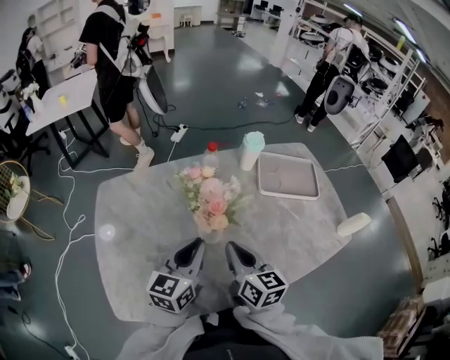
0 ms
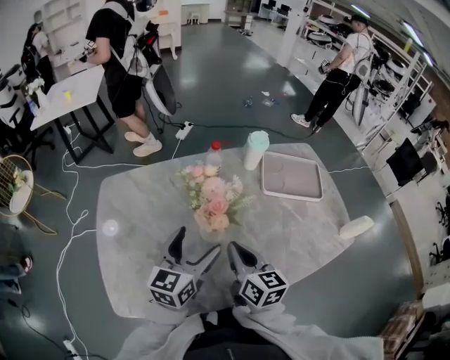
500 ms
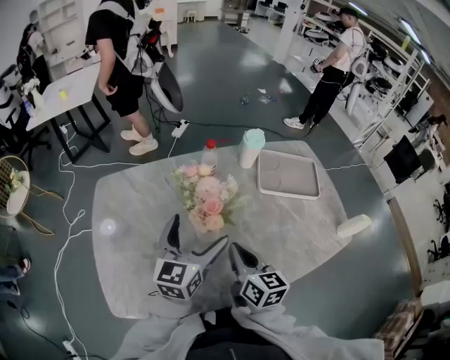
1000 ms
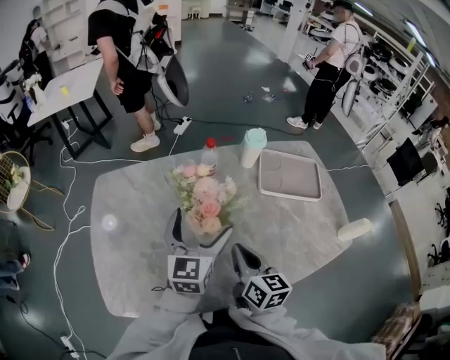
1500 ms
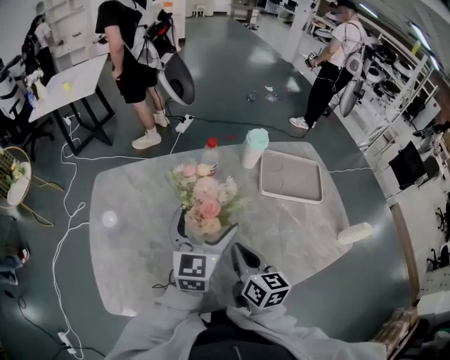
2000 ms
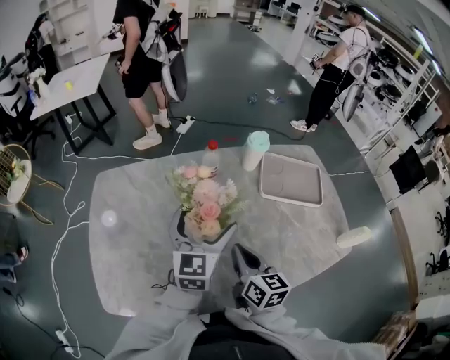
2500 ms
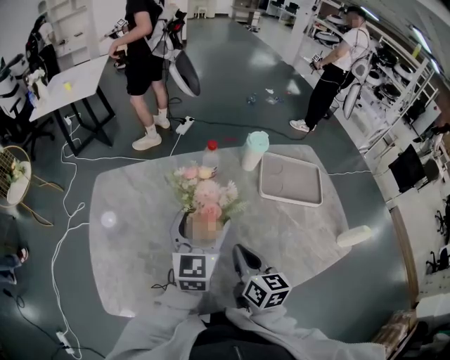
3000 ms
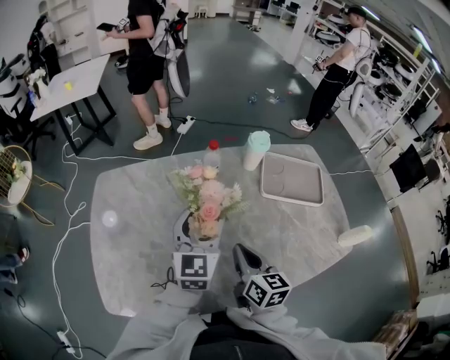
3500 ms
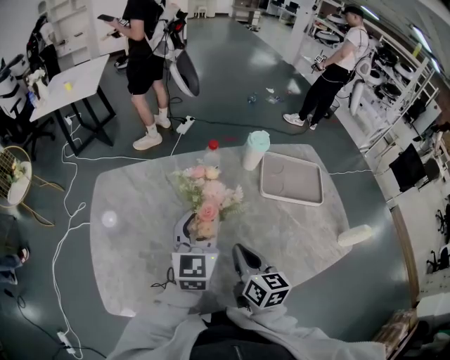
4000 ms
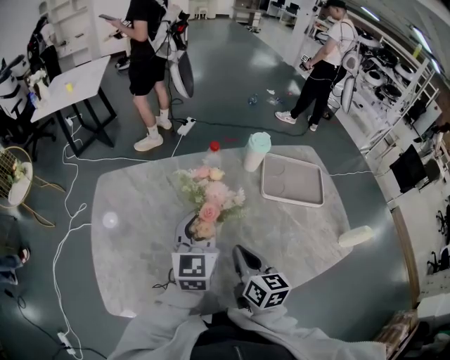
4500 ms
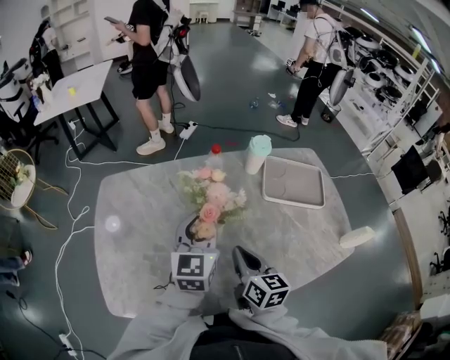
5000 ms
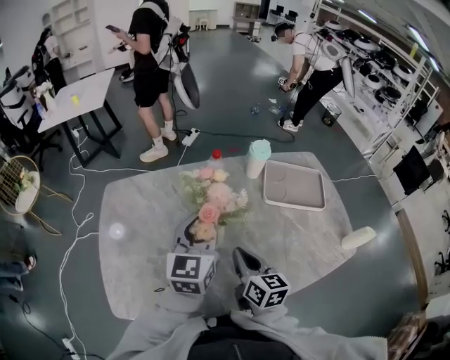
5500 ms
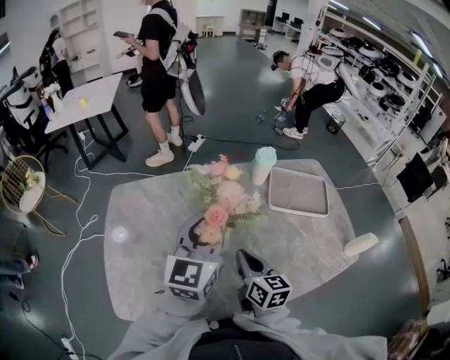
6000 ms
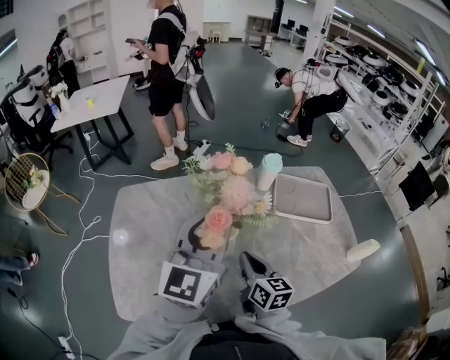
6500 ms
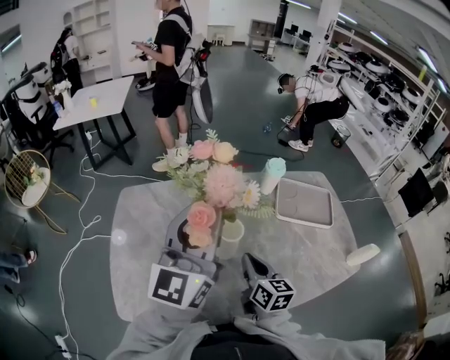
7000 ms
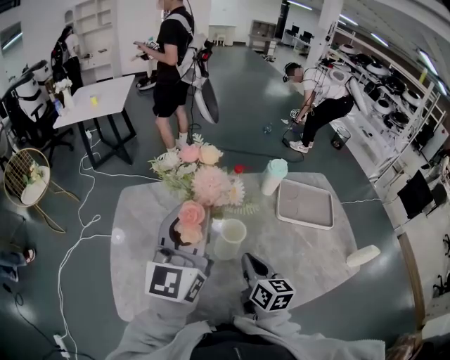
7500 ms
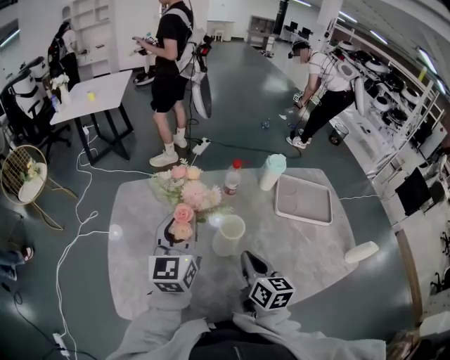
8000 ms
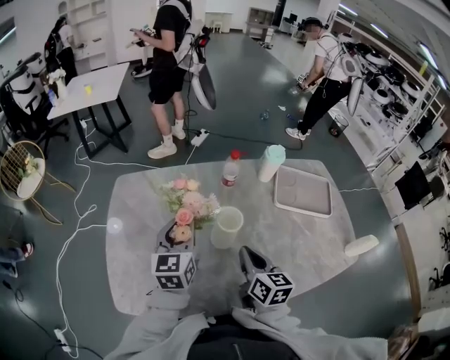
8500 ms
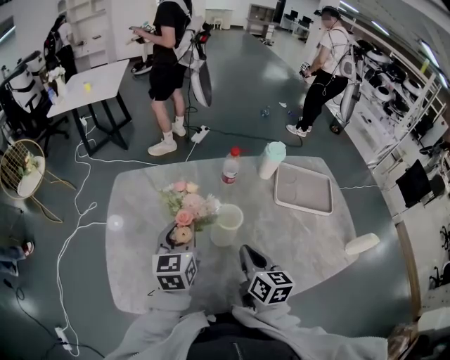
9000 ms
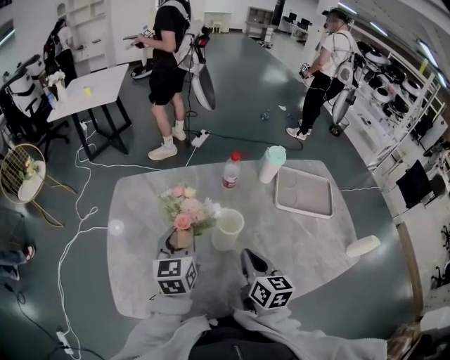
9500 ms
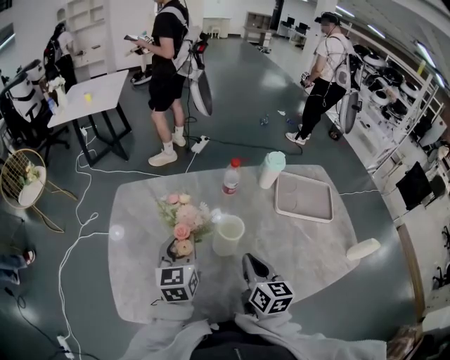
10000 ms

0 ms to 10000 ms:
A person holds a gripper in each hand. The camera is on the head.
0 ms to 2000 ms: The left gripper goes about 10 cm forward and to the right, and opens; the right gripper moves about 5 cm.
2000 ms to 4000 ms: The left gripper closes up.
4000 ms to 6000 ms: The left gripper shifts roughly 10 cm upward.
6000 ms to 8000 ms: The left gripper travels to the left by roughly 15 cm, and goes upward and returns, about 10 cm each way.
8000 ms to 10000 ms: The left gripper heads downward, covering approximately 10 cm.

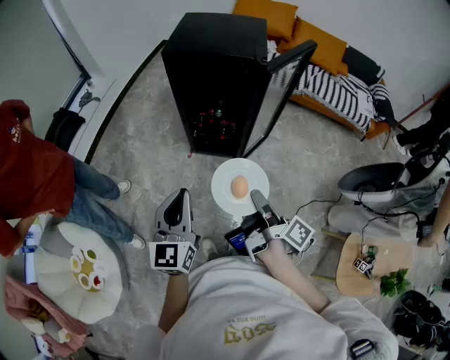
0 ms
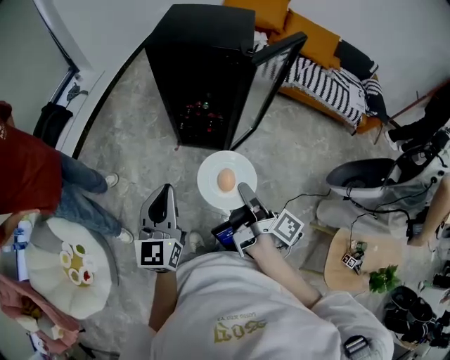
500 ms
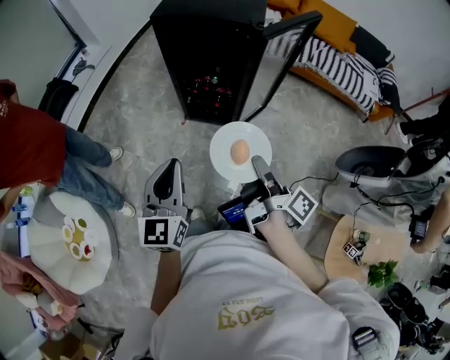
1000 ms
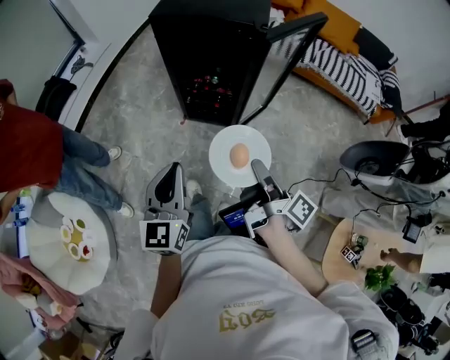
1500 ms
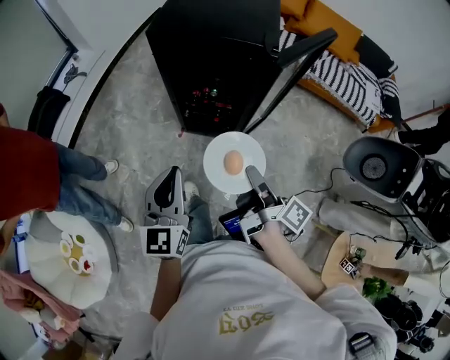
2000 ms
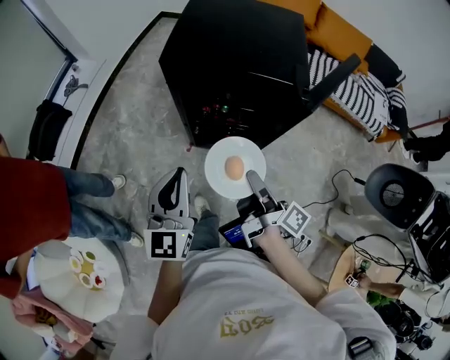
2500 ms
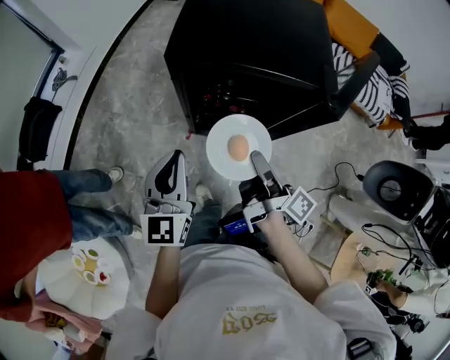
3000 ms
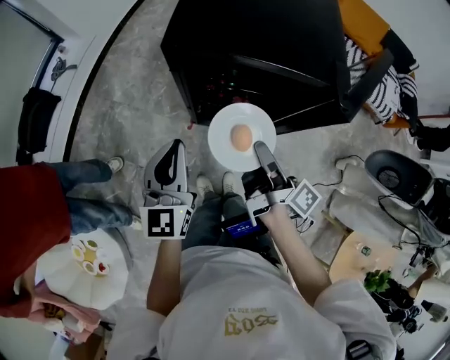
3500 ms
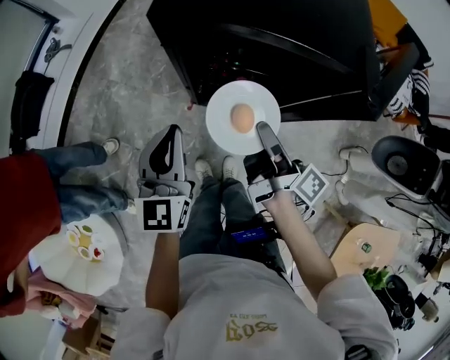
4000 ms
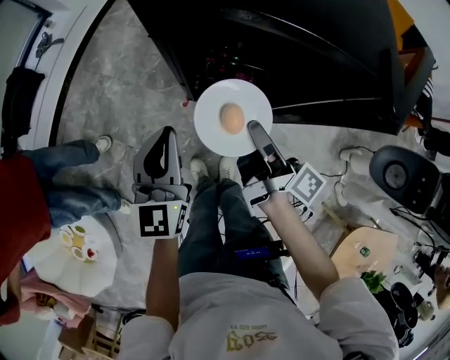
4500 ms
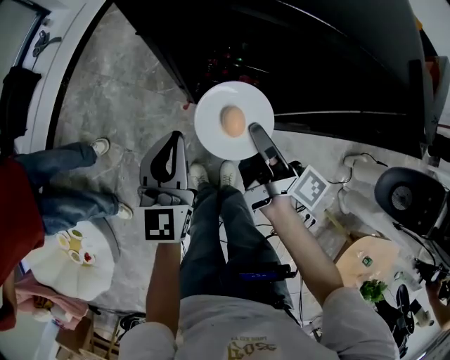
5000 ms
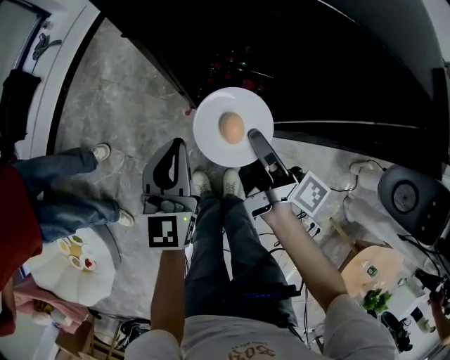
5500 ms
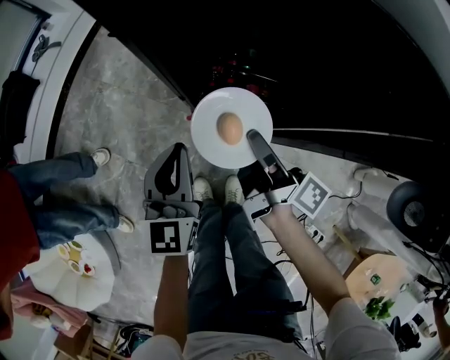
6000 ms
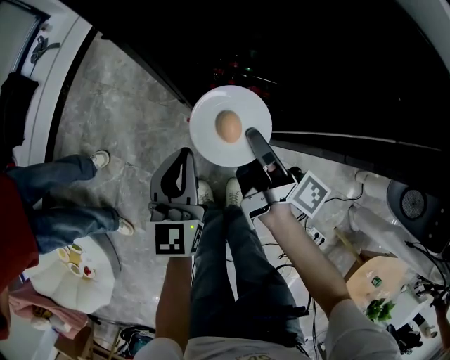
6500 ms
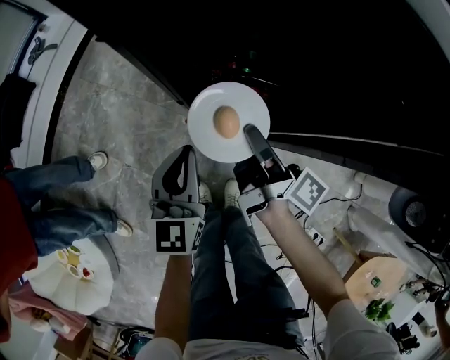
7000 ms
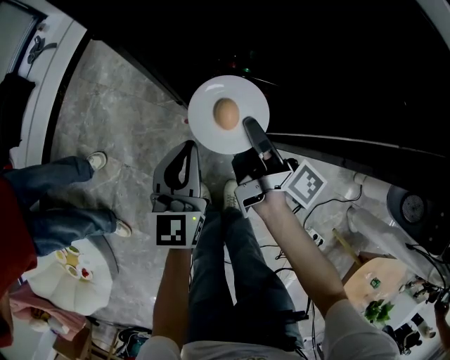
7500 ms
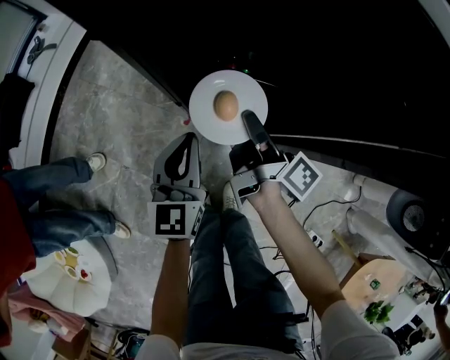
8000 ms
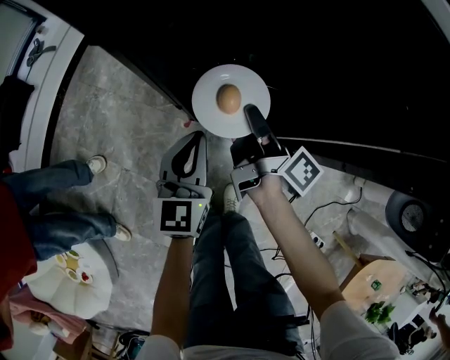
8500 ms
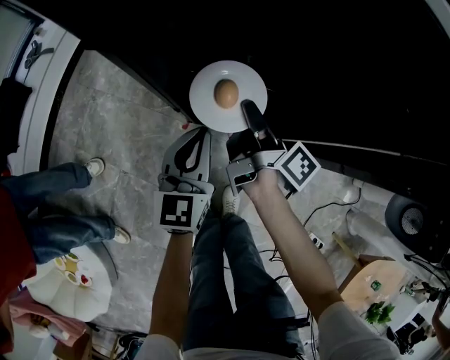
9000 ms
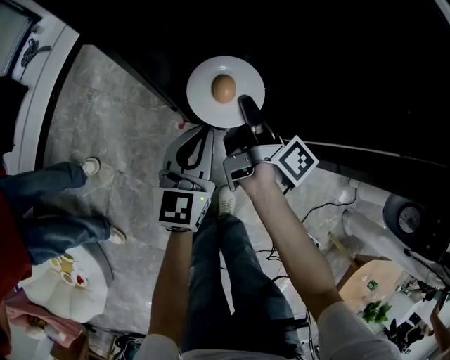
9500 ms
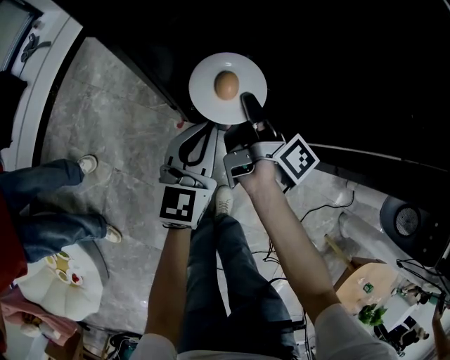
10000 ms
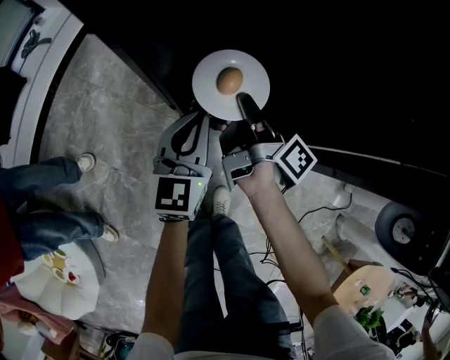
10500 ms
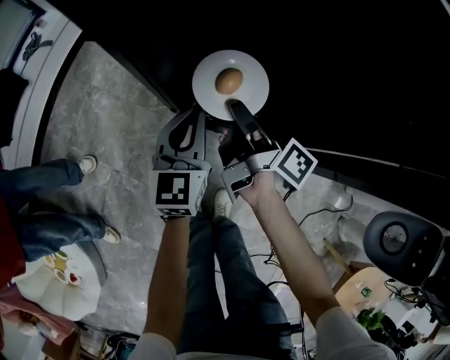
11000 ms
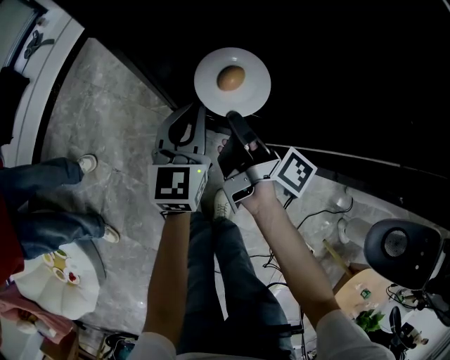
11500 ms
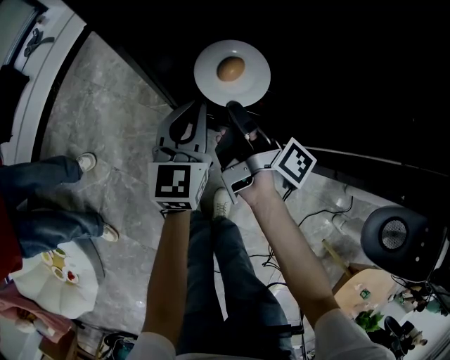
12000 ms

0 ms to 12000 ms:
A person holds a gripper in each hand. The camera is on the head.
0 ms to 2000 ms: The left gripper moves approximately 10 cm.
2000 ms to 4000 ms: The left gripper changes place by about 25 cm.
4000 ms to 6000 ms: The left gripper shifts about 15 cm downward.
6000 ms to 8000 ms: The left gripper shifts by about 5 cm.
8000 ms to 10000 ms: The left gripper shifts by some 5 cm.
10000 ms to 12000 ms: The left gripper ends up roughly 5 cm from where it was.

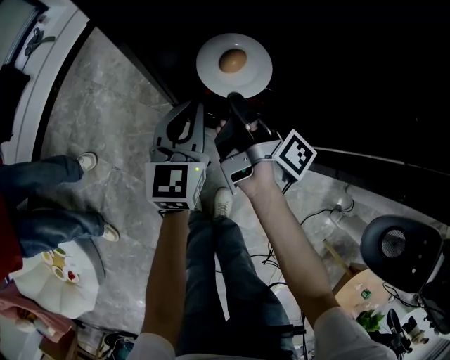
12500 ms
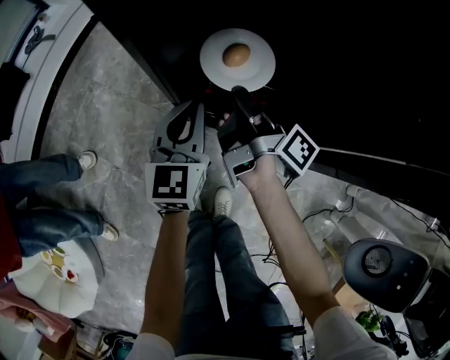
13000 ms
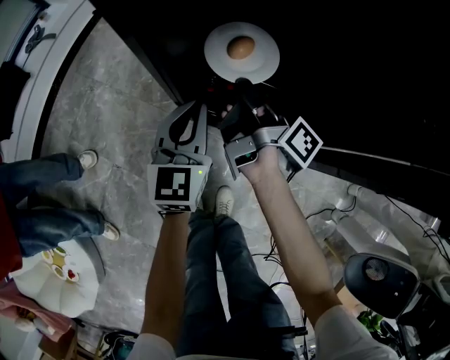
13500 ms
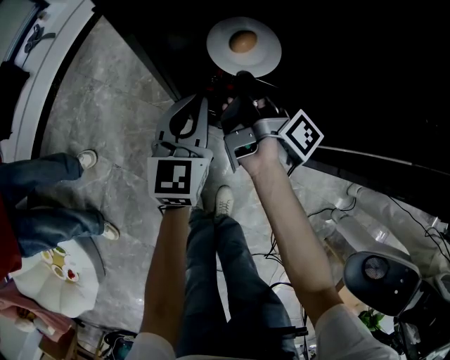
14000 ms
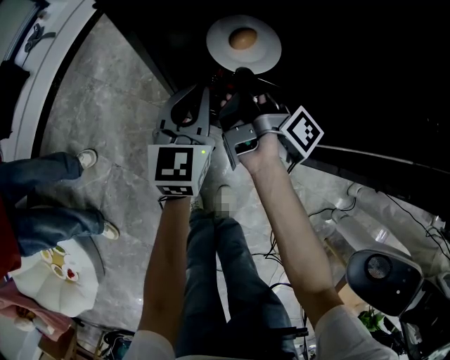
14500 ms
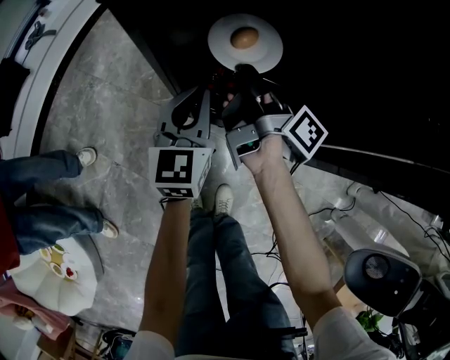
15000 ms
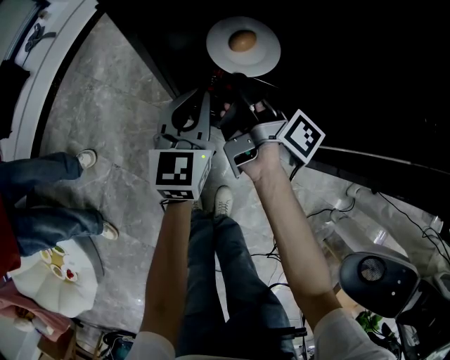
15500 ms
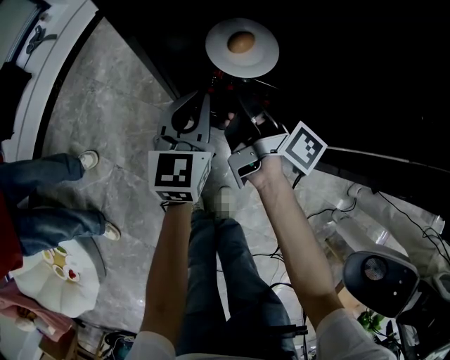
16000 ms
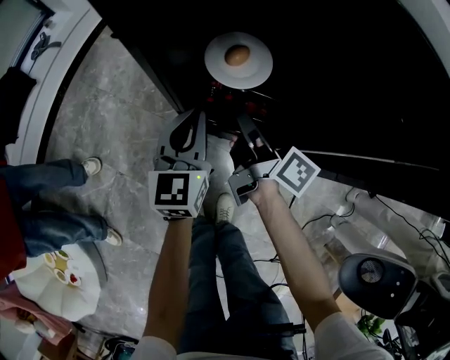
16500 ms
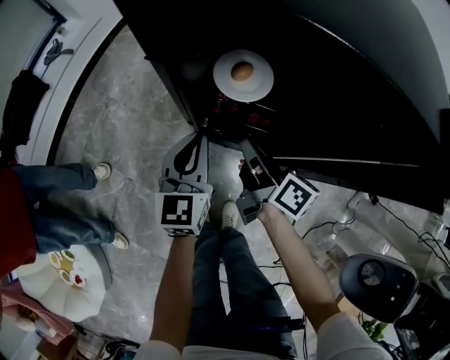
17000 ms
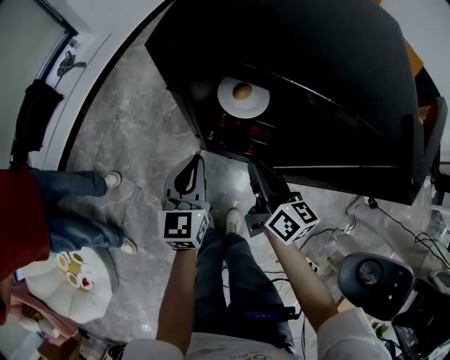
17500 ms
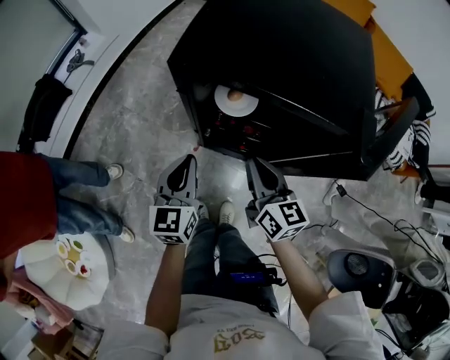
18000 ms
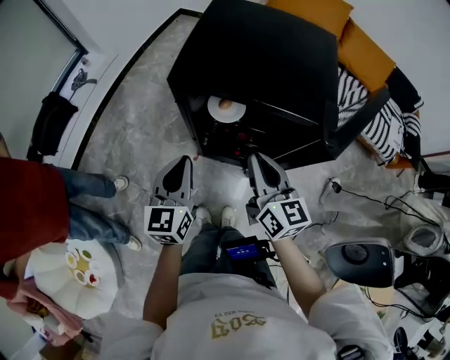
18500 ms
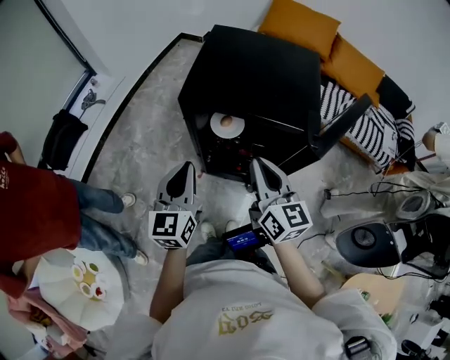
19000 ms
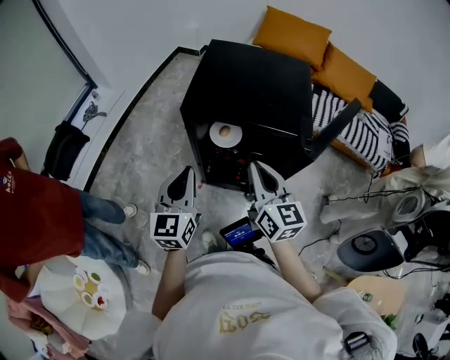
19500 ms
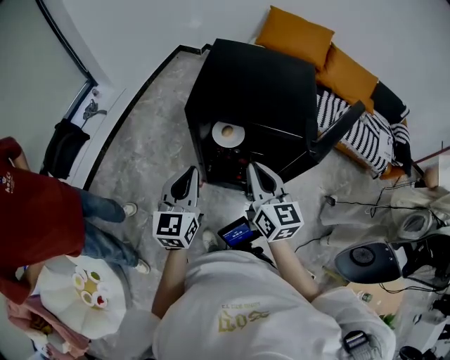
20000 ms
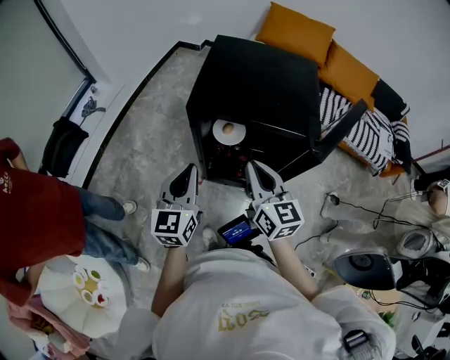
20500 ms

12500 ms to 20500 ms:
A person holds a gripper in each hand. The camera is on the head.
16500 ms to 18500 ms: The left gripper goes roughly 20 cm upward.
18500 ms to 20500 ms: The left gripper is displaced upward by approximately 5 cm.
